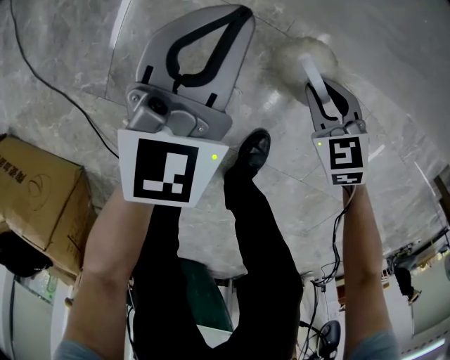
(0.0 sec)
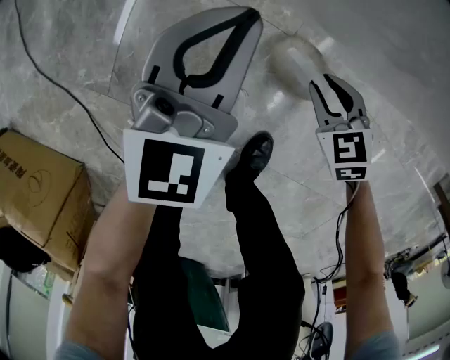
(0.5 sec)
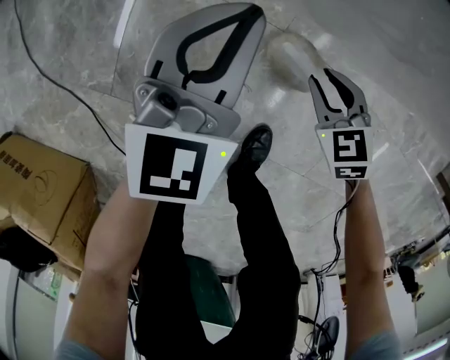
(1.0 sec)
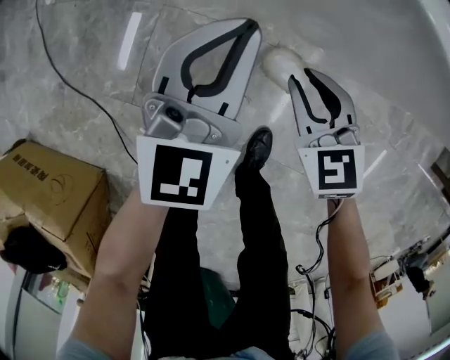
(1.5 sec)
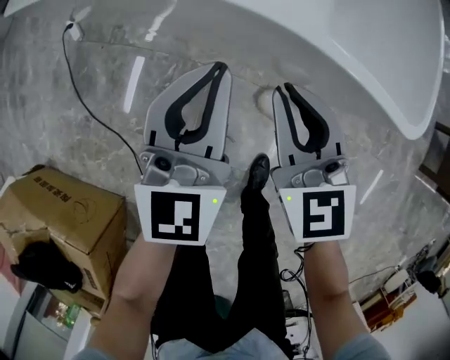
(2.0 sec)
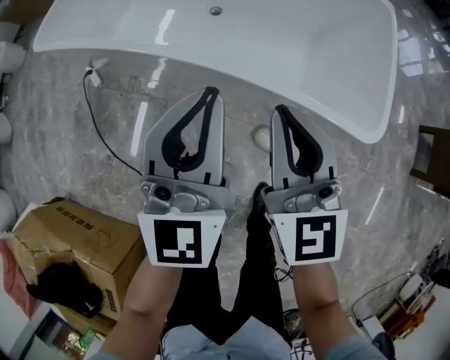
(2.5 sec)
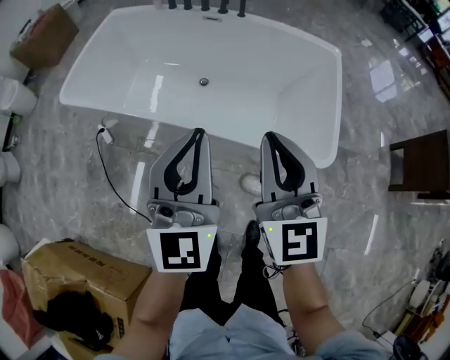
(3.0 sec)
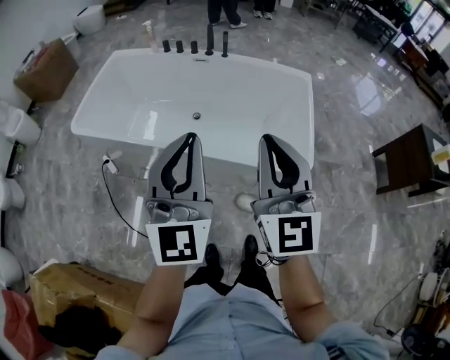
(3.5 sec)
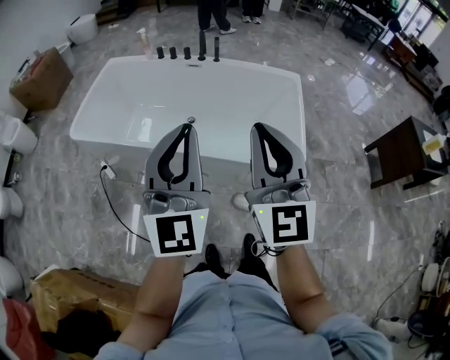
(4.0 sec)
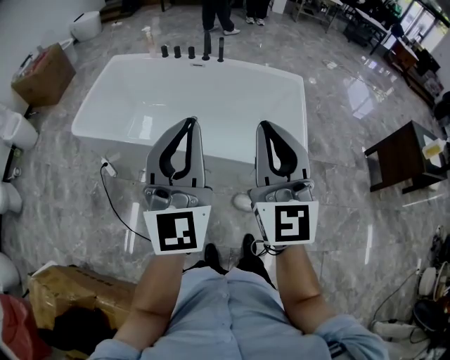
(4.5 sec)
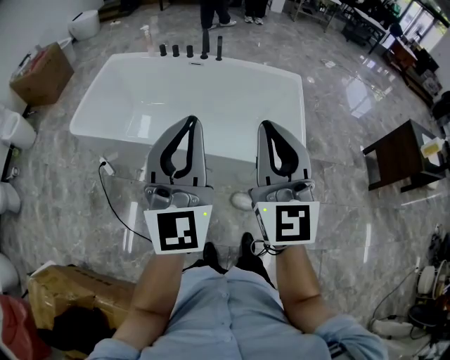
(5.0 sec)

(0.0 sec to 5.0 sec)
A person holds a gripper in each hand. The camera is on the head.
0.0 sec - 2.5 sec: The grippers both shift upward by approximately 60 cm. The right gripper tilts its fingers roughly 50 degrees upward. Meanwhile the left gripper rotates some 20 degrees.
2.5 sec - 5.0 sec: The two grippers go roughly 40 cm upward. The right gripper rotates roughly 20 degrees.

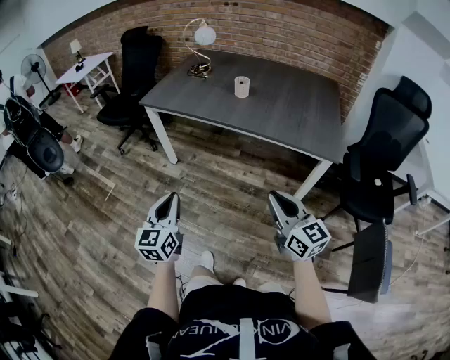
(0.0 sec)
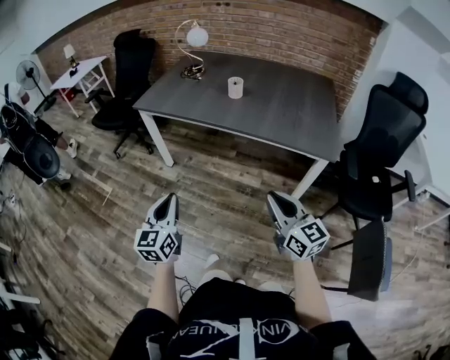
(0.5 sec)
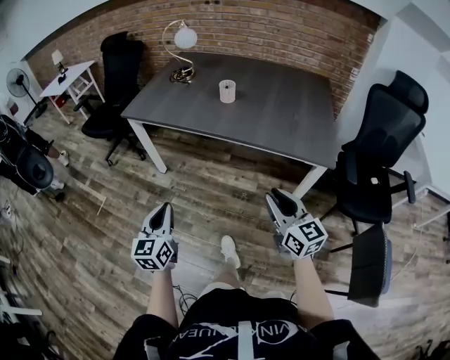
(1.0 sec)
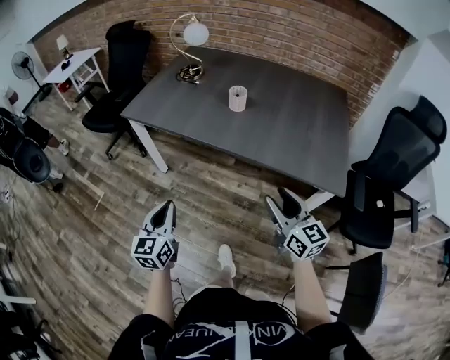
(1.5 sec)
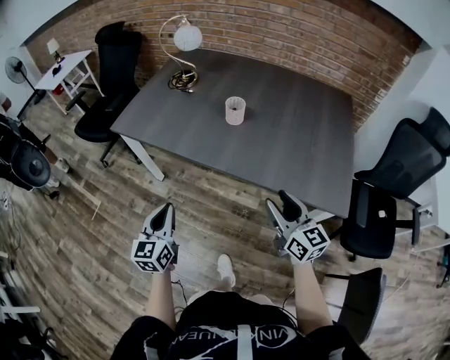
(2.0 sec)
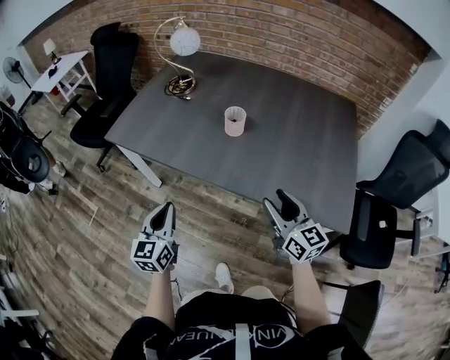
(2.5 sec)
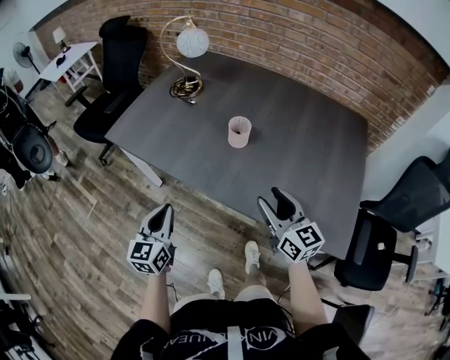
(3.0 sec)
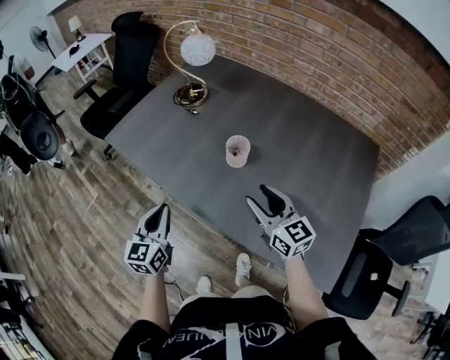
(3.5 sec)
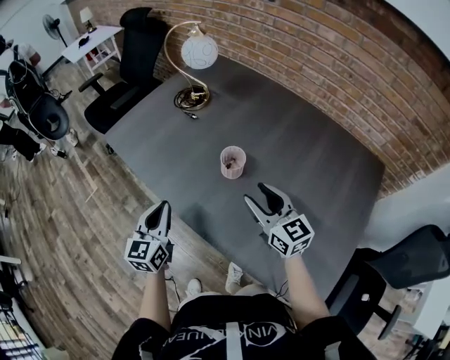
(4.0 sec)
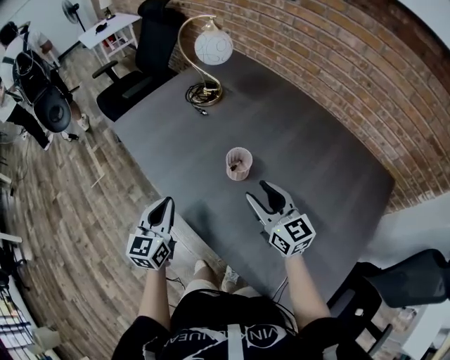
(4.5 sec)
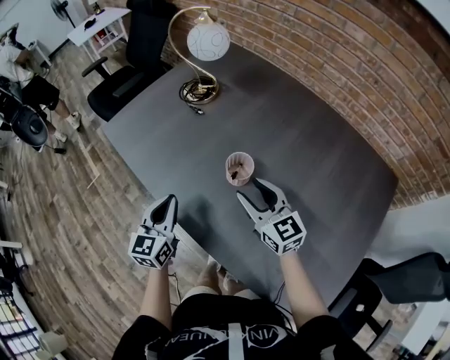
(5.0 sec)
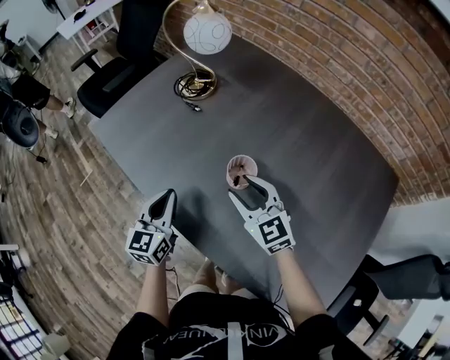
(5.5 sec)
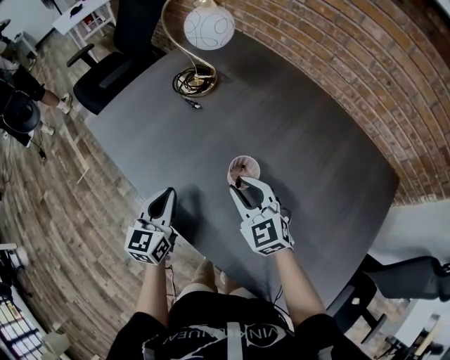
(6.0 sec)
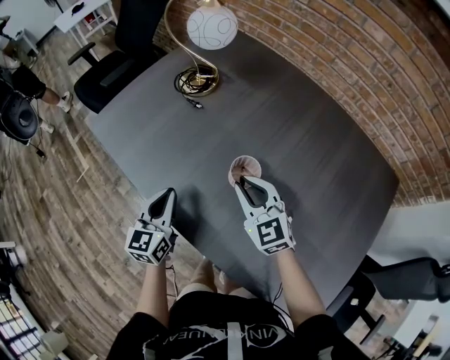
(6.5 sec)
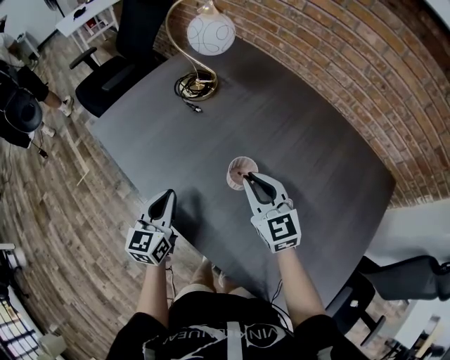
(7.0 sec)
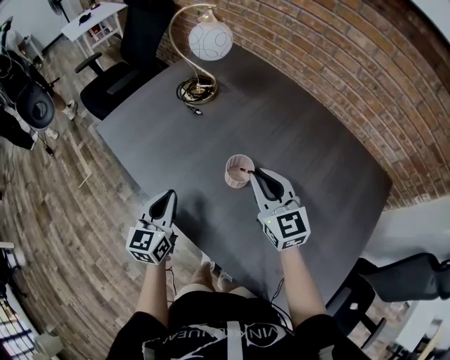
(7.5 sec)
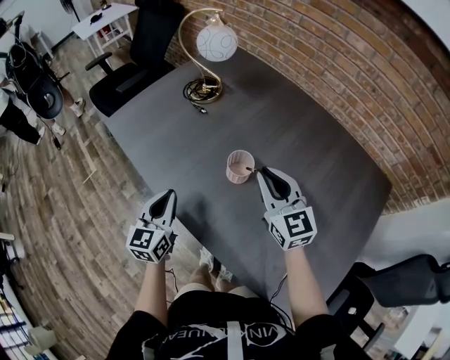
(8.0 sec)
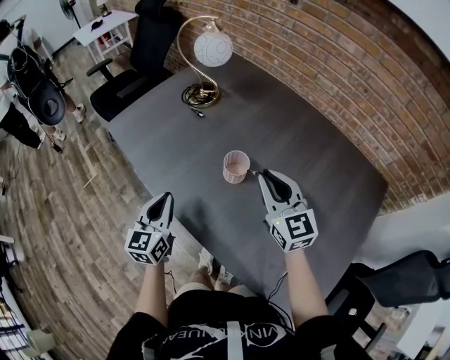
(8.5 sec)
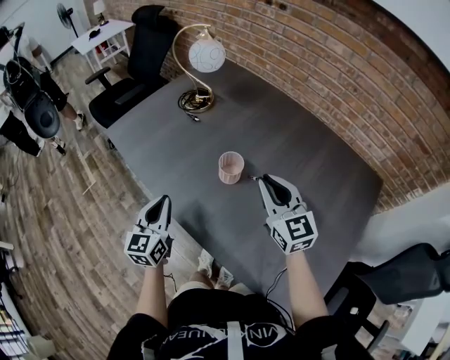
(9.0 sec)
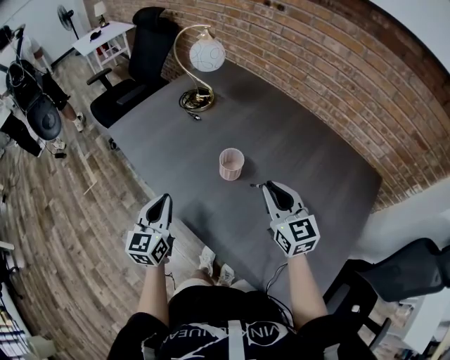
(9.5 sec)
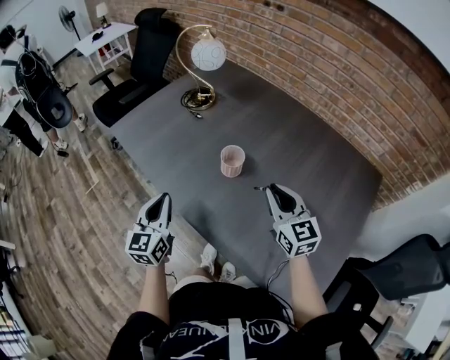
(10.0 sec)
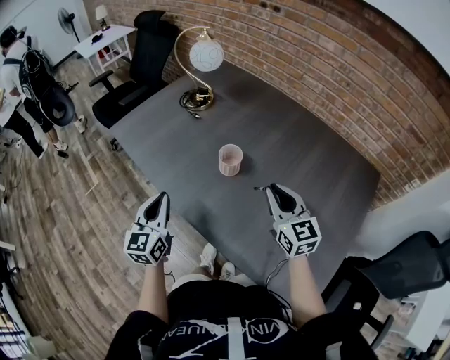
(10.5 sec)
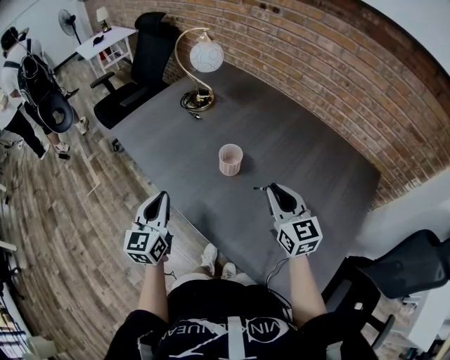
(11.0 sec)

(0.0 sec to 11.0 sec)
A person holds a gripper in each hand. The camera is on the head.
0.0 sec - 2.0 sec: Both grippers travel together forward, some 30 cm. The right gripper opens up.
2.0 sec - 3.5 sec: The left gripper is displaced forward and to the right by roughly 20 cm; the right gripper moves forward, some 25 cm, and swivels roughly 20 degrees.
3.5 sec - 5.5 sec: The left gripper goes some 15 cm forward and to the right; the right gripper goes some 15 cm forward, and rotates approximately 20 degrees.
5.5 sec - 7.5 sec: The right gripper shifts roughly 5 cm upward, and closes its fingers.
7.5 sec - 9.0 sec: Both grippers move backward, about 5 cm.
9.0 sec - 11.0 sec: The right gripper heads backward, covering approximately 5 cm. Meanwhile the left gripper ends up some 5 cm from where it was.

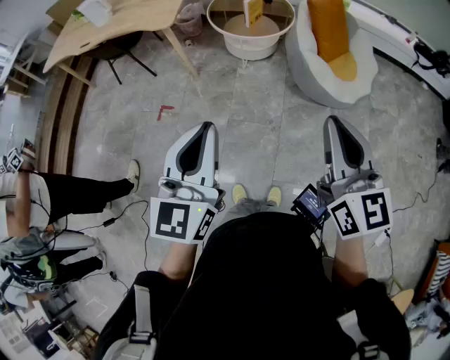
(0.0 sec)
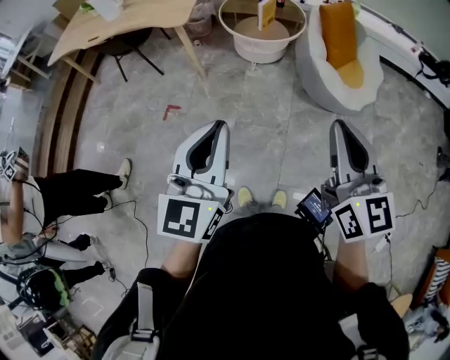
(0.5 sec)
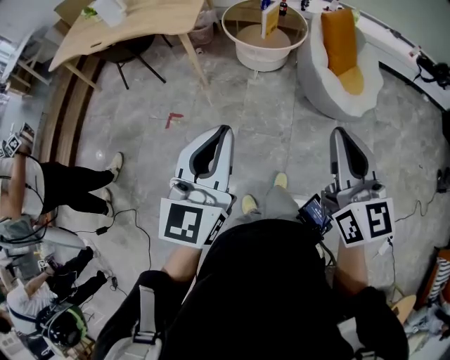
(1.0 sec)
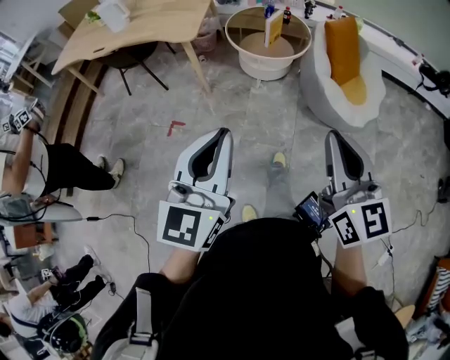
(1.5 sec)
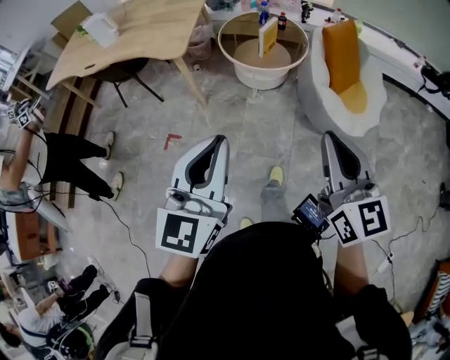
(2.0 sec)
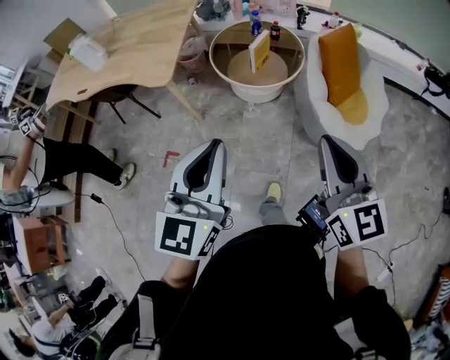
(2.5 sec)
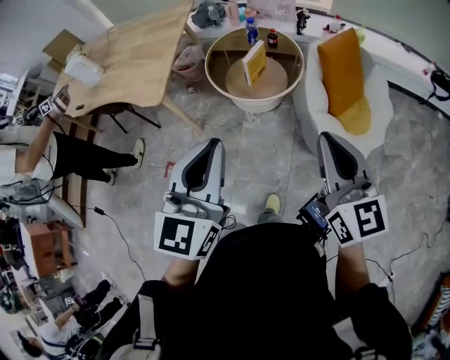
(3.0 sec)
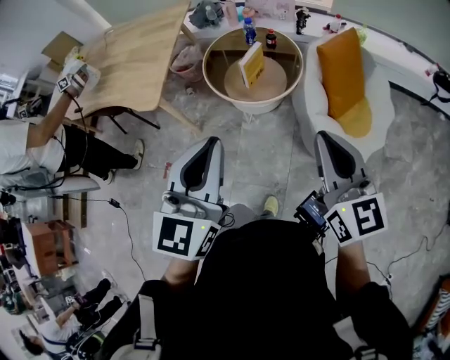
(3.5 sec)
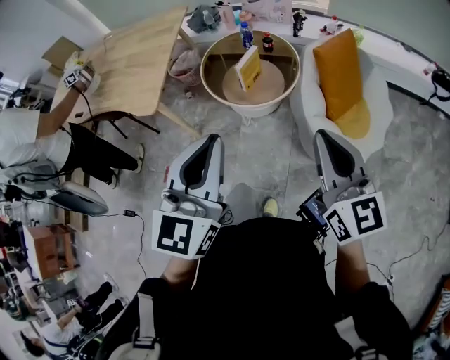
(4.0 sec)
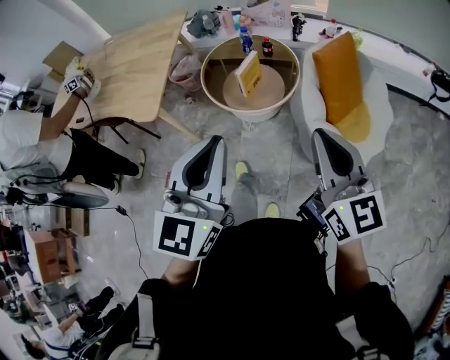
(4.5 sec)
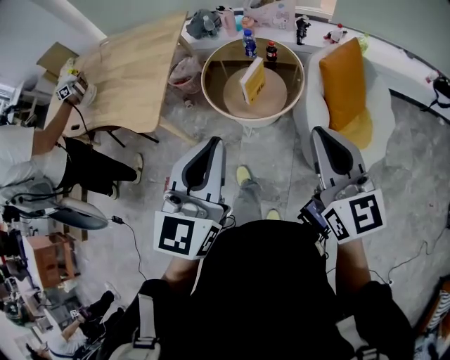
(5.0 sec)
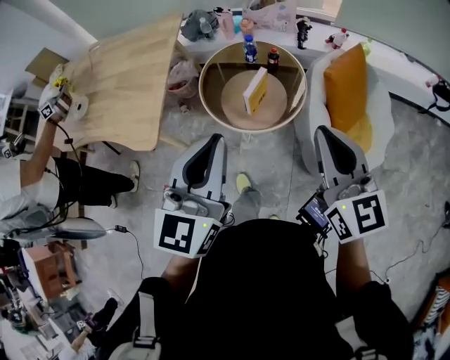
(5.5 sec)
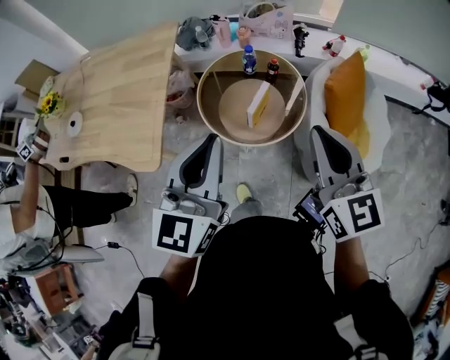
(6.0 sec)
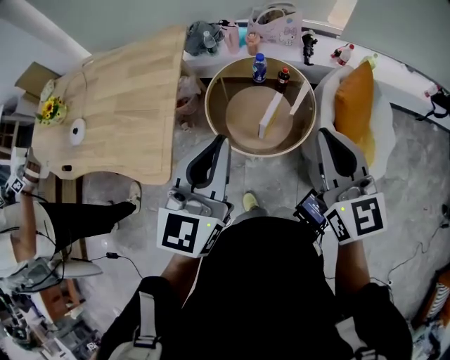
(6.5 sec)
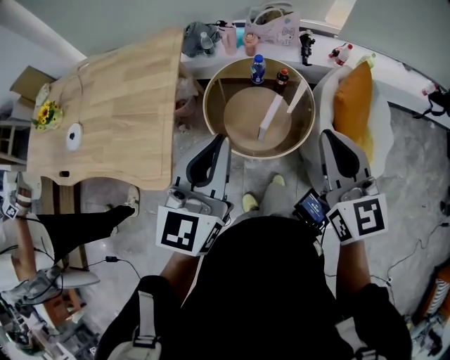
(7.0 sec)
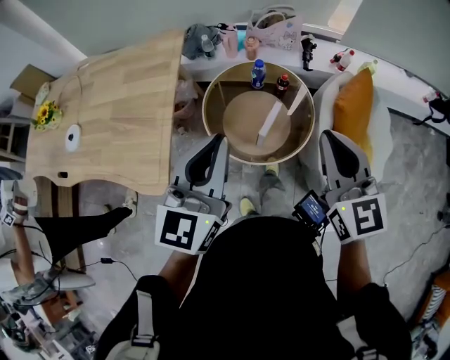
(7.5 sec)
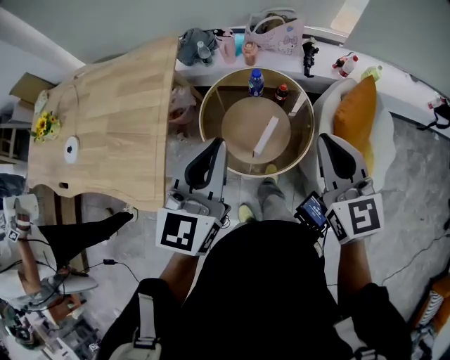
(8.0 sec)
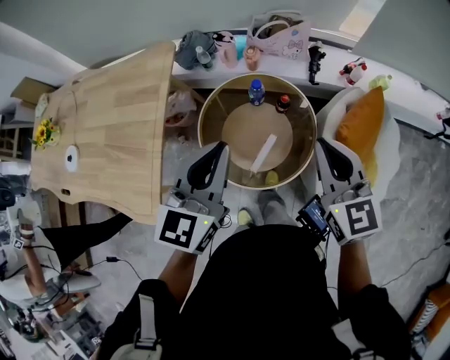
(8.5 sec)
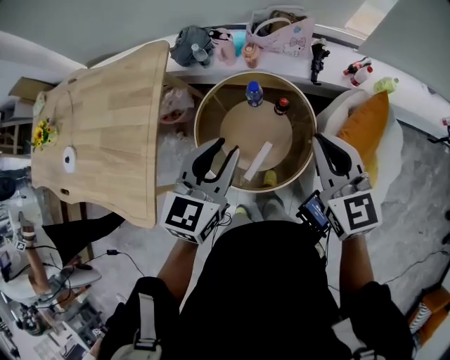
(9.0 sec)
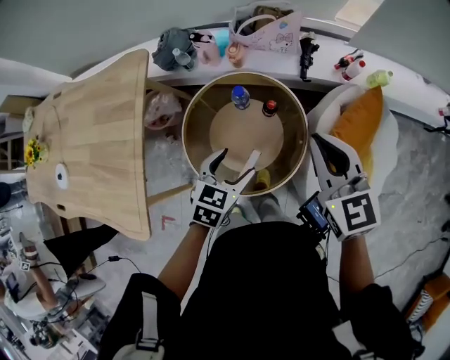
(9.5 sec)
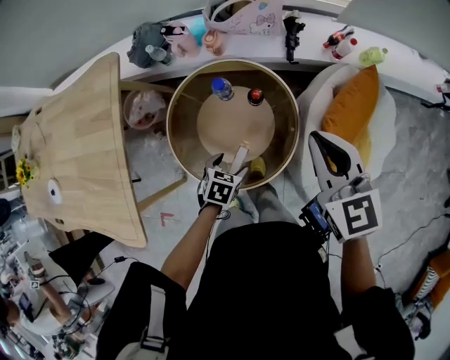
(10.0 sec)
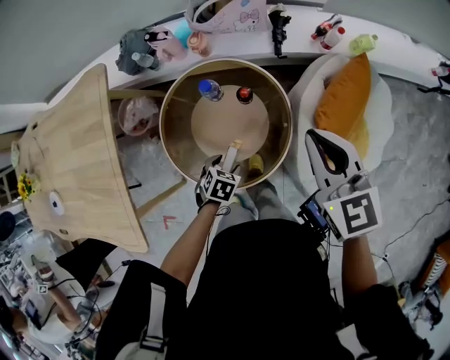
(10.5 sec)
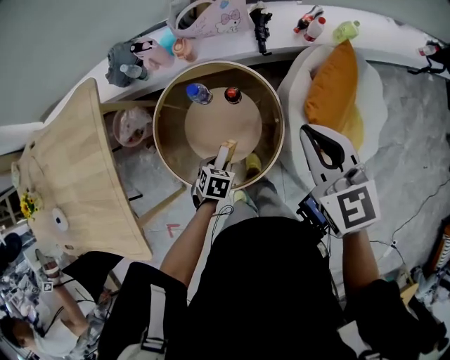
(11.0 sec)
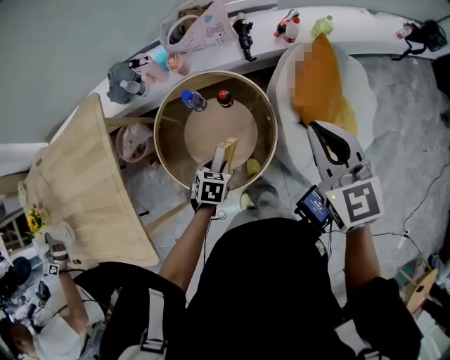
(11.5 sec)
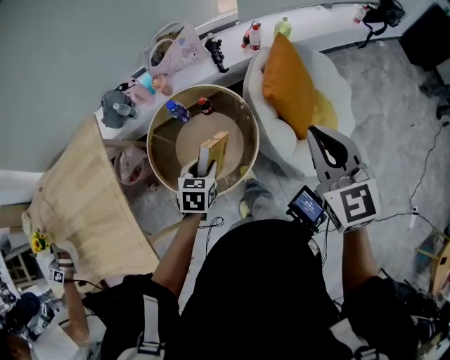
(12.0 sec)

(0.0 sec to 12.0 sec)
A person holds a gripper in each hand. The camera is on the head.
0.0 sec - 2.0 sec: The left gripper moves forward, some 15 cm. Meanwhile the right gripper is displaced forward and to the left by some 15 cm.
2.0 sec - 4.0 sec: Both grippers move forward and to the right, about 30 cm.
4.0 sec - 6.0 sec: The left gripper heads forward, covering approximately 25 cm. Meanwhile the right gripper shifts some 25 cm forward and to the left.
6.0 sec - 8.0 sec: Both grippers move forward, some 15 cm.
8.0 sec - 10.0 sec: The left gripper shifts roughly 40 cm downward, tilts its fingers approximately 60 degrees downward, and opens; the right gripper shifts approximately 25 cm forward, downward and to the right.
10.0 sec - 12.0 sec: The right gripper ends up some 25 cm from where it was, and rotates approximately 30 degrees. The left gripper shifts roughly 15 cm upward, rotates some 20 degrees, and closes up.
